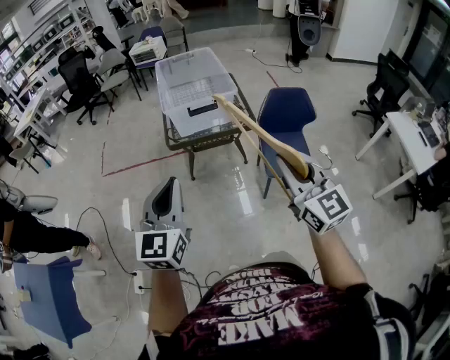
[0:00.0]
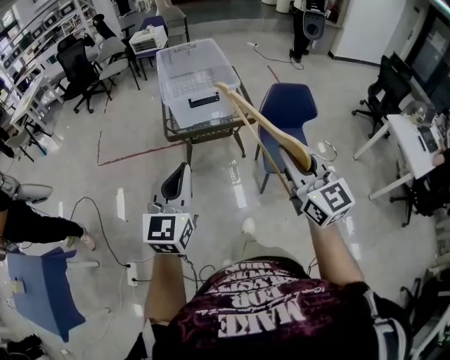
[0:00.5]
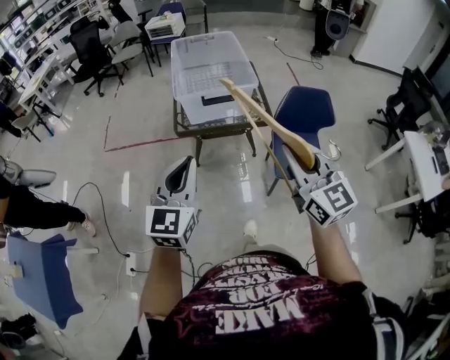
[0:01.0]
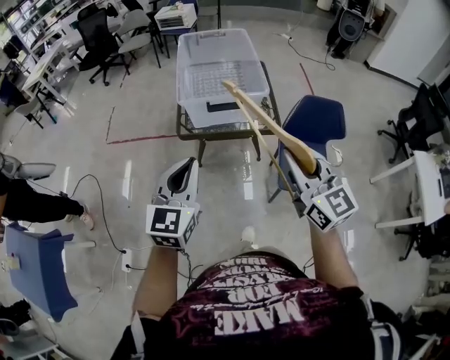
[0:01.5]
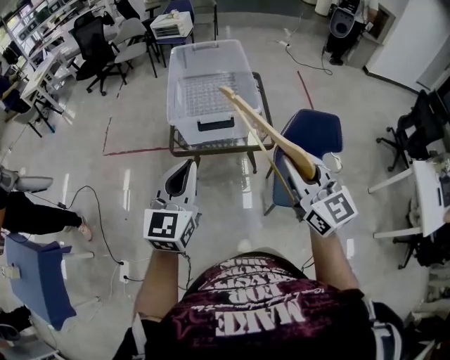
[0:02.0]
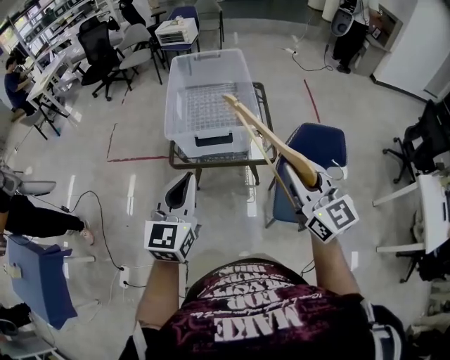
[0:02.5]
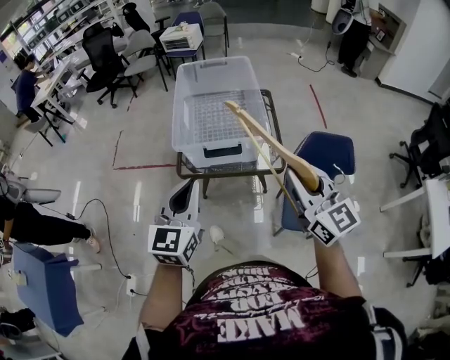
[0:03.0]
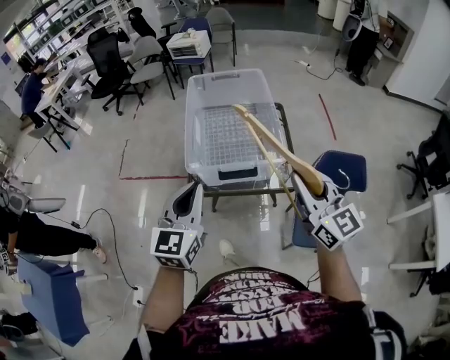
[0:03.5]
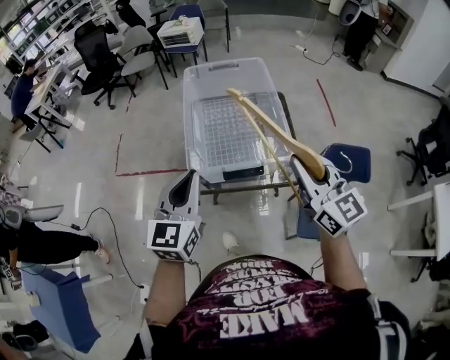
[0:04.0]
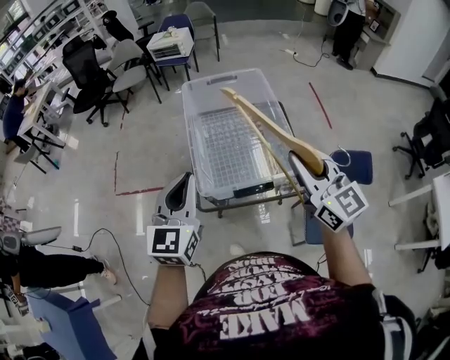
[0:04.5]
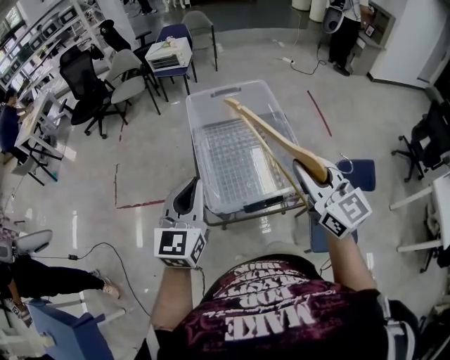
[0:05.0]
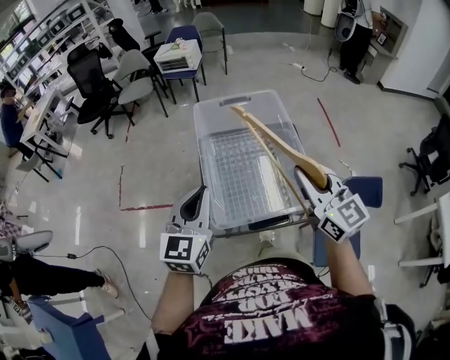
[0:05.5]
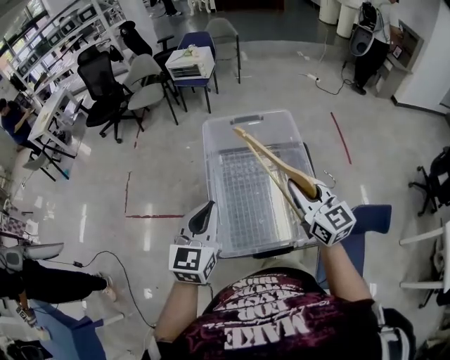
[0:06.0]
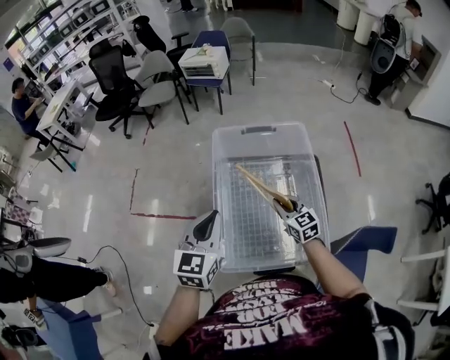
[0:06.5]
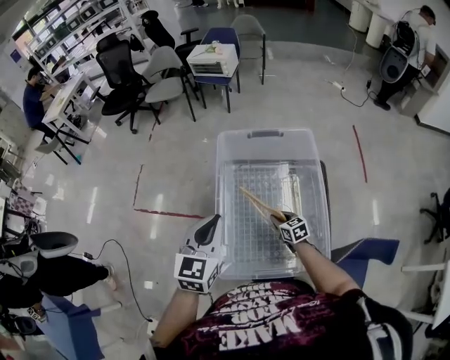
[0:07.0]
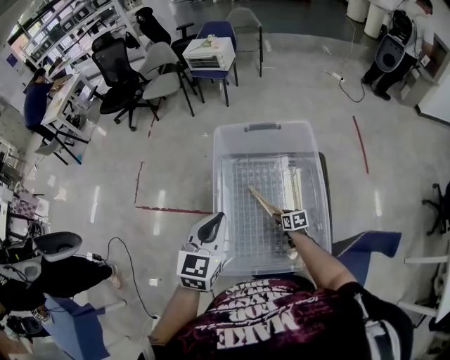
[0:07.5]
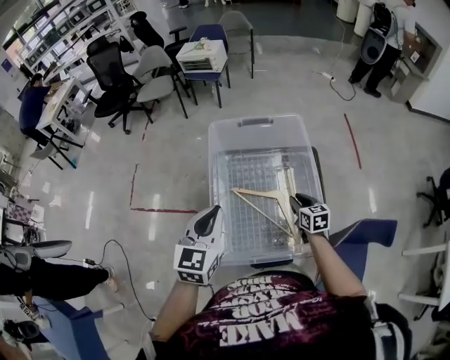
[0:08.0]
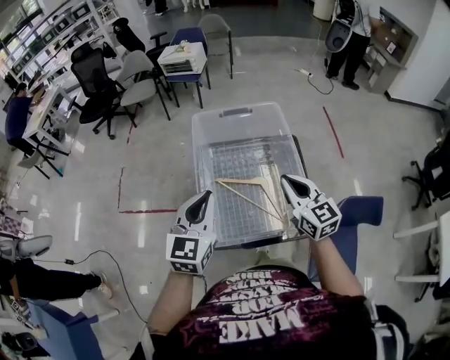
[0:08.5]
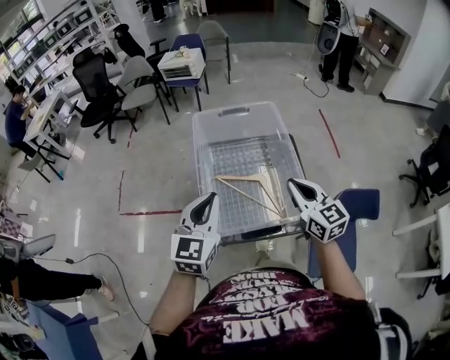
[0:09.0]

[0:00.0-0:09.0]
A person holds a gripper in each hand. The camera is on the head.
0:00.0 to 0:02.0: Both grippers travel together forward, roughly 25 cm.
0:02.0 to 0:04.5: Both grippers move forward, roughly 30 cm.
0:04.5 to 0:07.0: The left gripper goes about 20 cm forward. Meanwhile the right gripper heads downward and forward, covering roughly 50 cm, and angles its fingers downward, by some 40 degrees.
0:07.0 to 0:09.0: The left gripper heads backward, covering approximately 10 cm. The right gripper goes roughly 35 cm upward and backward, changes its angle by approximately 40 degrees, and opens, then closes again.

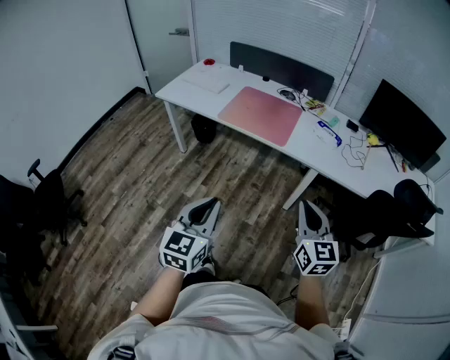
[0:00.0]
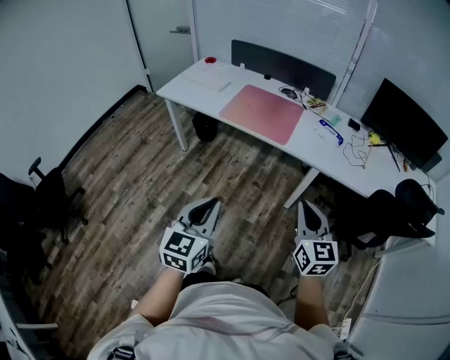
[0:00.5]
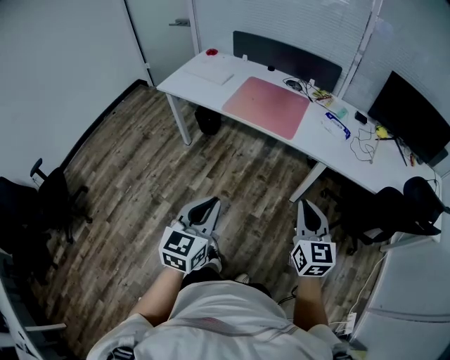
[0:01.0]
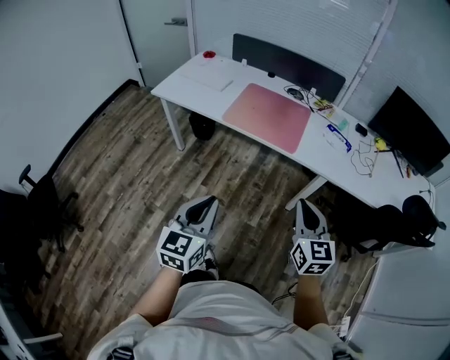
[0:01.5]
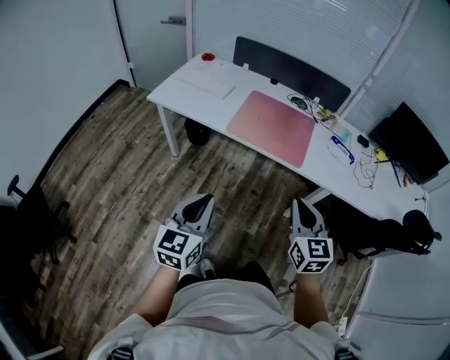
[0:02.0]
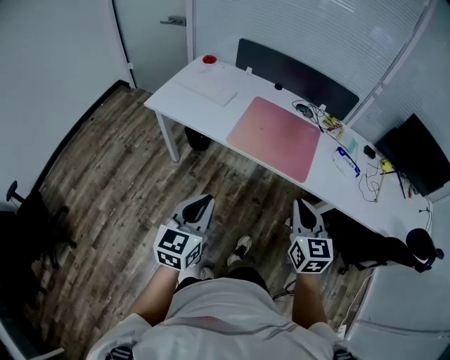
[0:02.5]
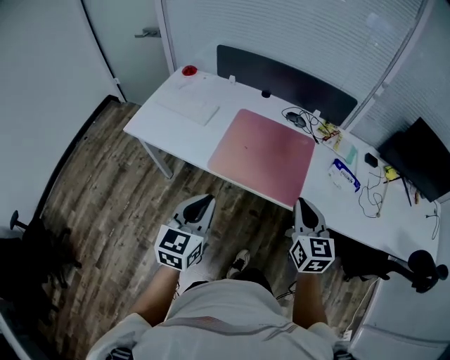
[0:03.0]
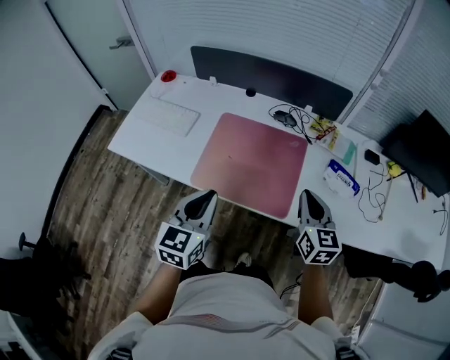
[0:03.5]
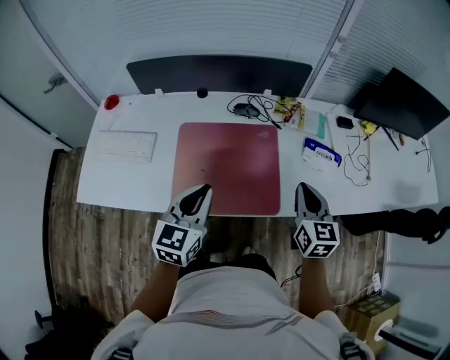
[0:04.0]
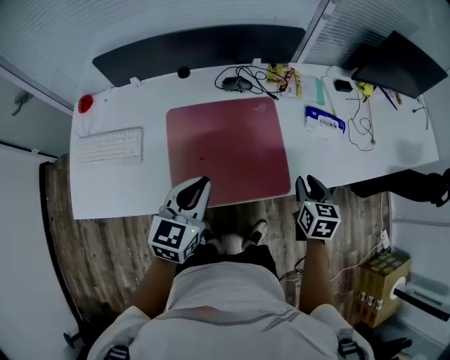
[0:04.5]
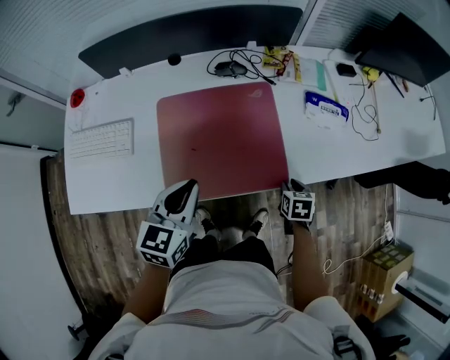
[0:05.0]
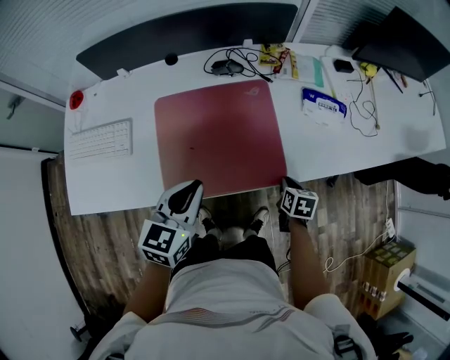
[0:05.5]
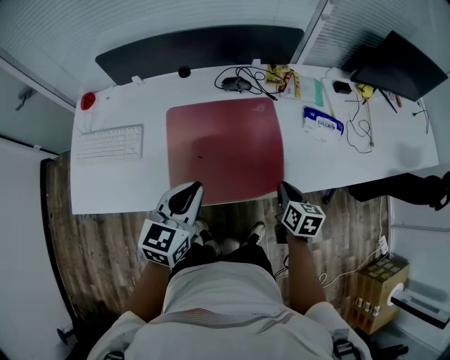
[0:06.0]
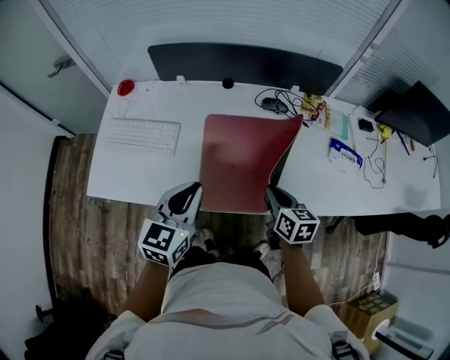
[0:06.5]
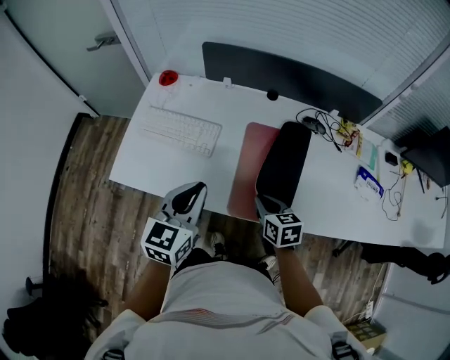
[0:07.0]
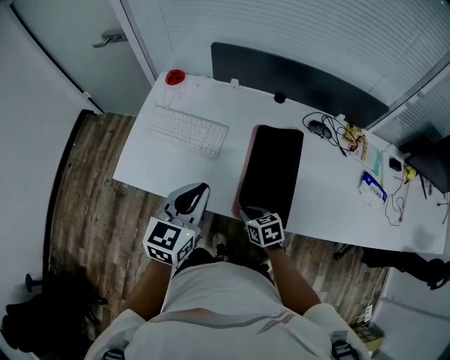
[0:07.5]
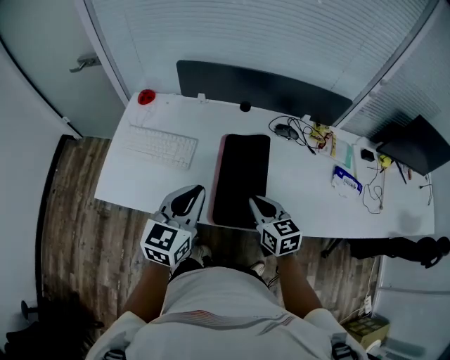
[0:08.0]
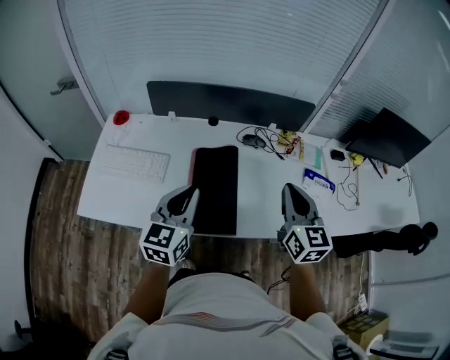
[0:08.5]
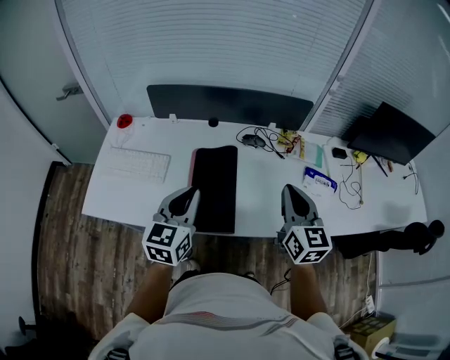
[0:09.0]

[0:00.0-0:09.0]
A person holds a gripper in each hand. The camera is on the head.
0:00.0 to 0:02.0: The right gripper moves to the left and forward, about 25 cm, while the left gripper moves forward and to the left, some 25 cm.
0:02.0 to 0:04.5: The right gripper moves approximately 40 cm, changes its angle by some 50 degrees, and opens; the left gripper changes place by roughly 50 cm, and swivels some 40 degrees.
0:04.5 to 0:07.0: The left gripper shifts by roughly 20 cm, and rotates some 20 degrees; the right gripper swings up and down, some 15 cm each way, with 2 reversals, turns by approximately 40 degrees, and closes.
0:07.0 to 0:09.0: The left gripper moves some 15 cm. The right gripper shifts approximately 25 cm upward, and tilts its fingers roughly 30 degrees upward.

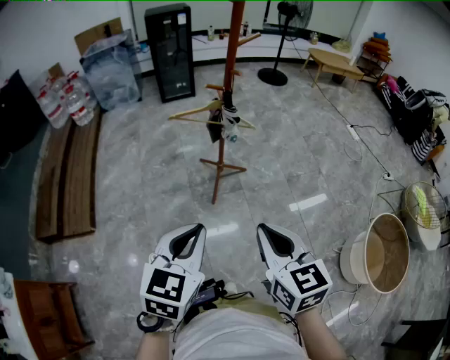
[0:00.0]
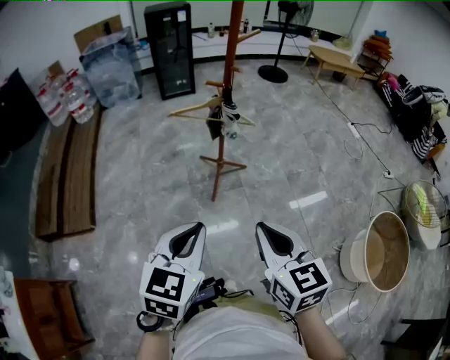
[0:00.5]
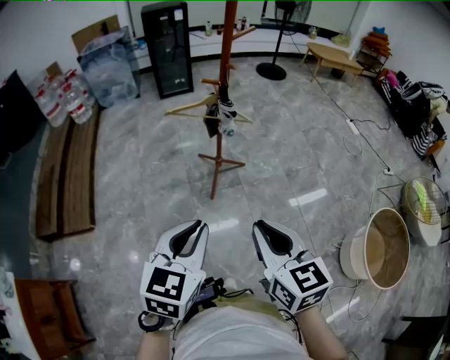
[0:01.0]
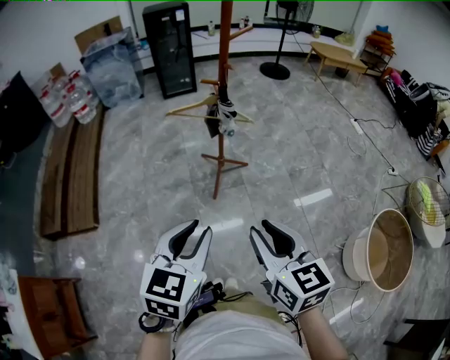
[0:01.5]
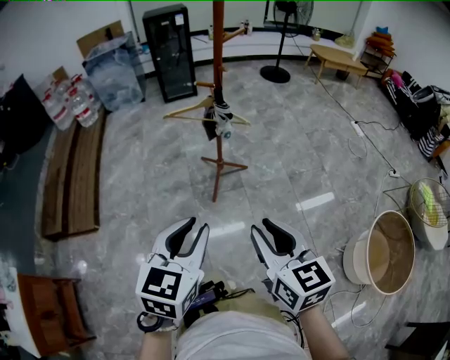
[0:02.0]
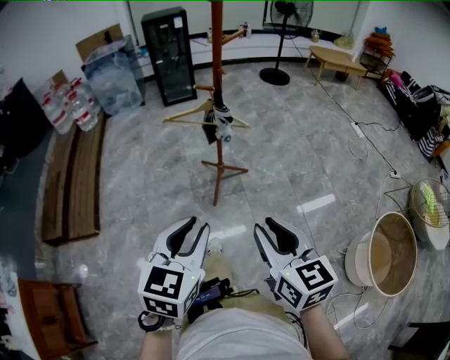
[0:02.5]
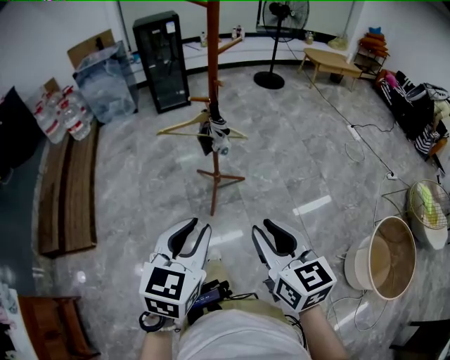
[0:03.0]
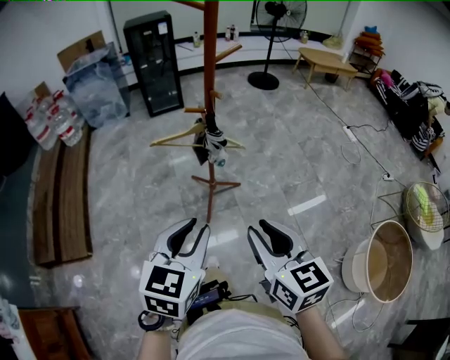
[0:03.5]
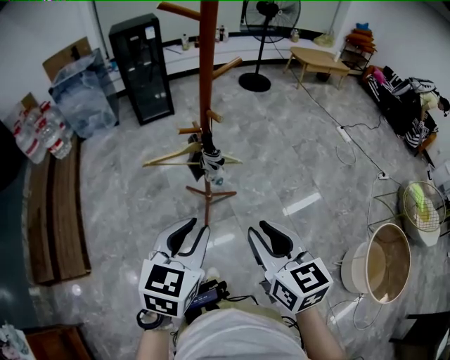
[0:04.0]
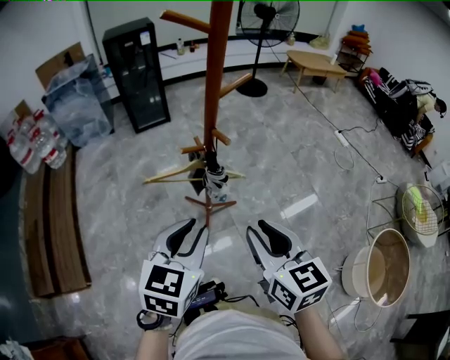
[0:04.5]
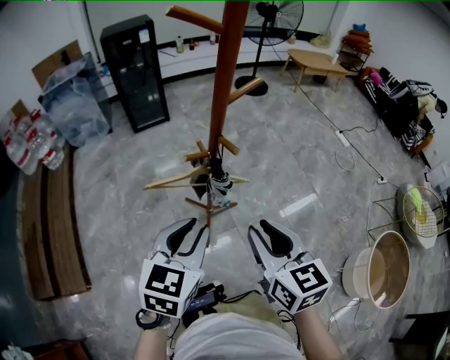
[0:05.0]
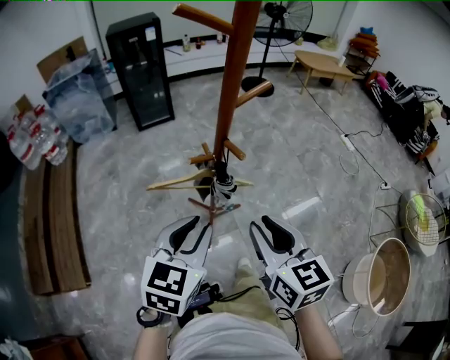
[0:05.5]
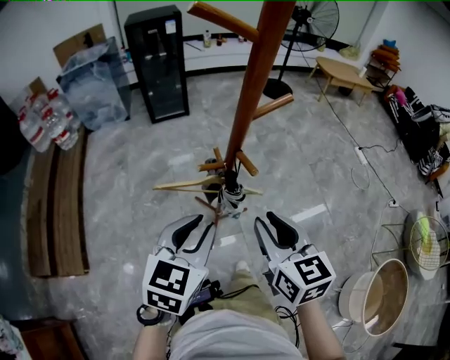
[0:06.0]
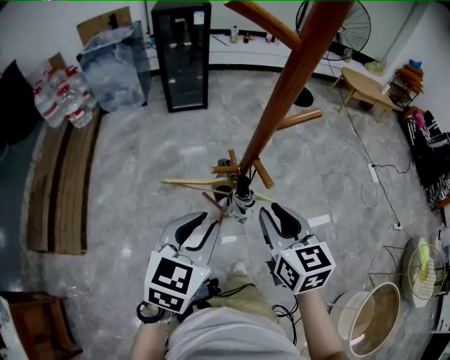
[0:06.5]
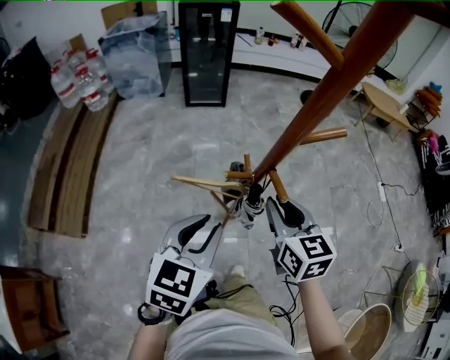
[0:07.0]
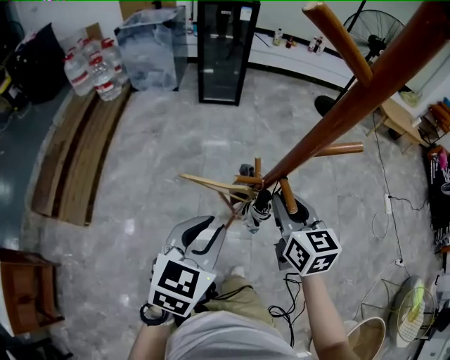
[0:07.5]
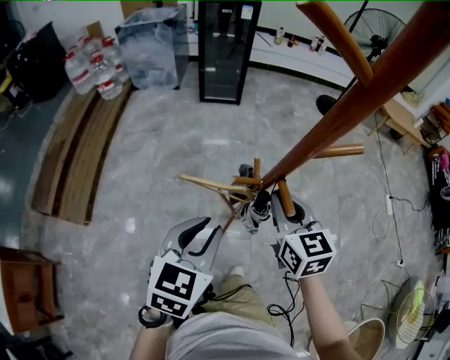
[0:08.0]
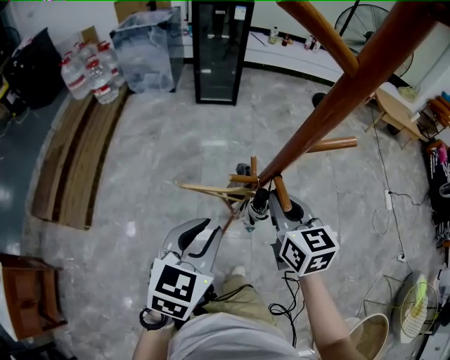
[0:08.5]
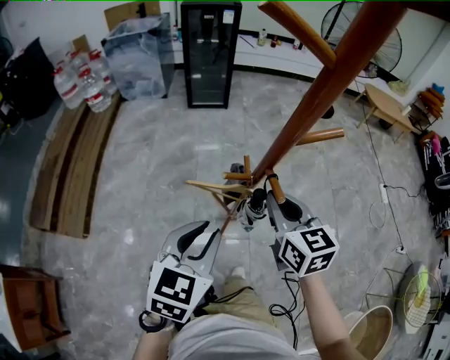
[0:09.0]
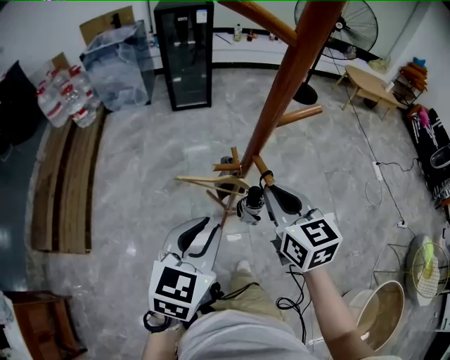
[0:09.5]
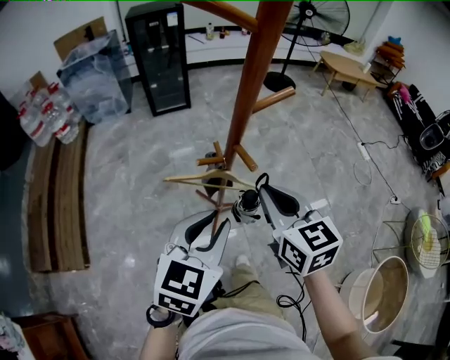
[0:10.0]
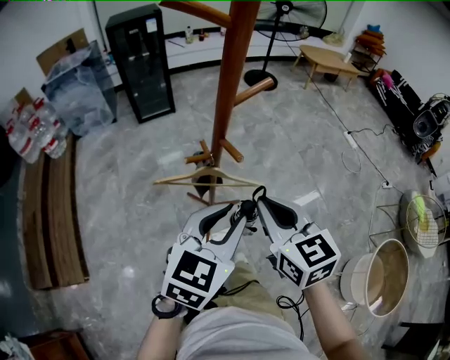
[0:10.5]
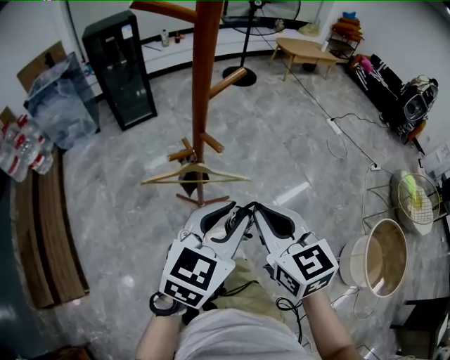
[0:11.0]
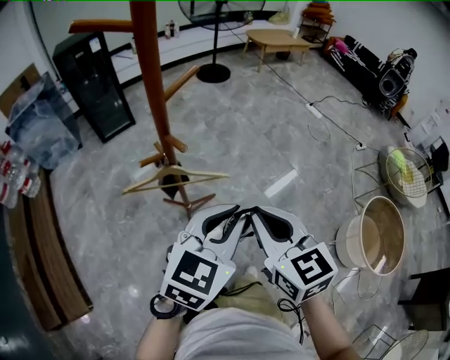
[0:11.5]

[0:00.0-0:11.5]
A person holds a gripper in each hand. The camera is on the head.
0:00.0 to 0:02.0: The right gripper opens up.
0:02.0 to 0:04.0: Both grippers move forward, some 20 cm.
0:04.0 to 0:06.0: The two grippers go approximately 15 cm forward.
0:06.0 to 0:07.5: The right gripper shifts roughly 15 cm forward.
0:07.5 to 0:09.5: The right gripper moves roughly 5 cm.
0:09.5 to 0:11.5: The right gripper shifts by approximately 20 cm, and changes its angle by roughly 20 degrees; the left gripper changes place by about 20 cm, and turns by some 40 degrees.
